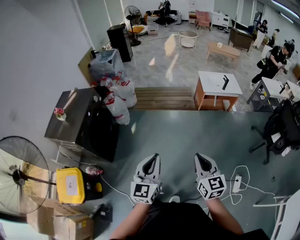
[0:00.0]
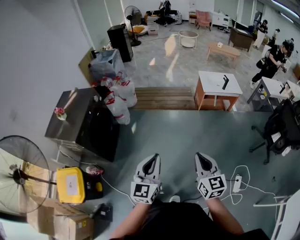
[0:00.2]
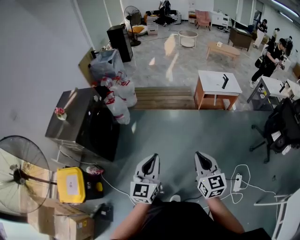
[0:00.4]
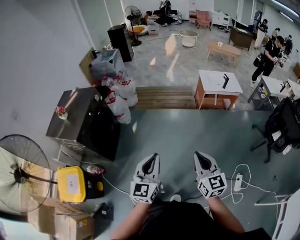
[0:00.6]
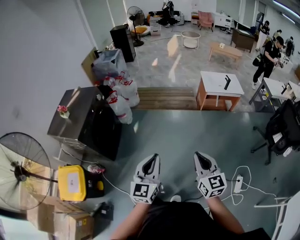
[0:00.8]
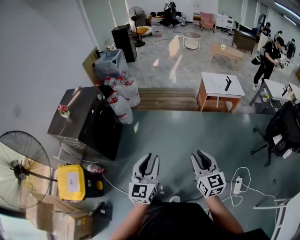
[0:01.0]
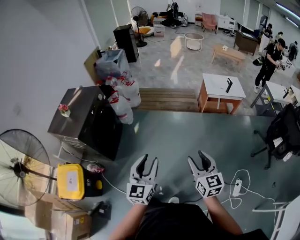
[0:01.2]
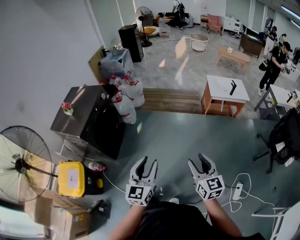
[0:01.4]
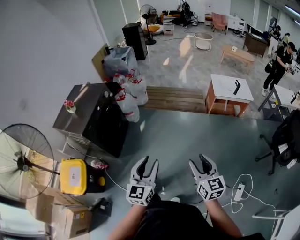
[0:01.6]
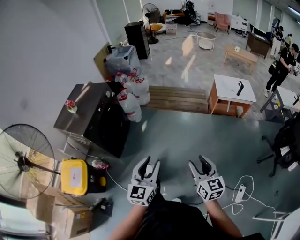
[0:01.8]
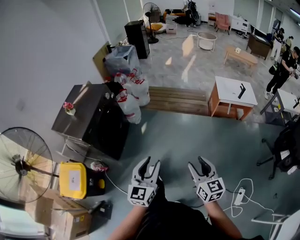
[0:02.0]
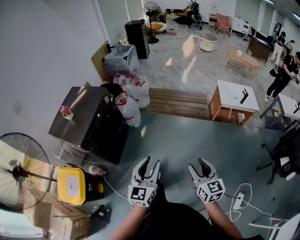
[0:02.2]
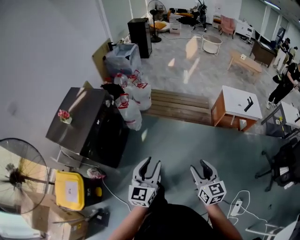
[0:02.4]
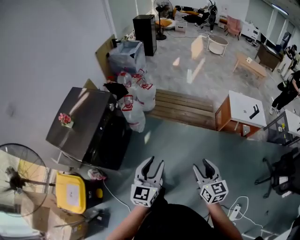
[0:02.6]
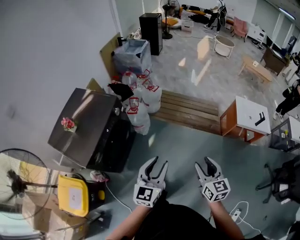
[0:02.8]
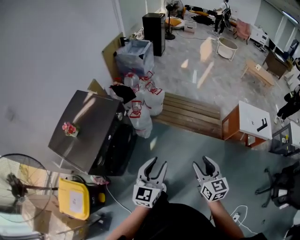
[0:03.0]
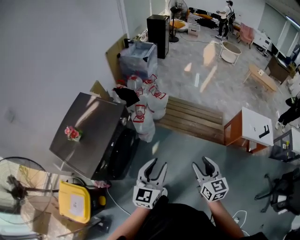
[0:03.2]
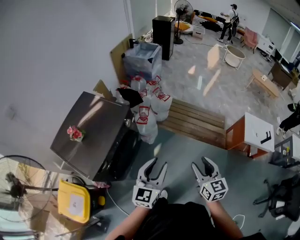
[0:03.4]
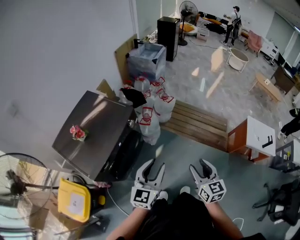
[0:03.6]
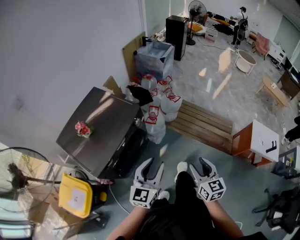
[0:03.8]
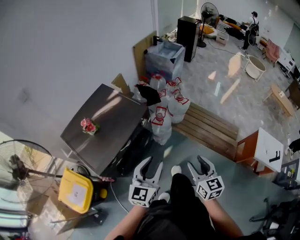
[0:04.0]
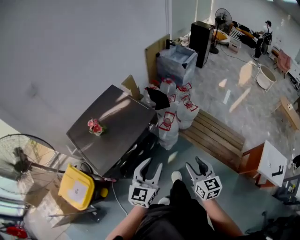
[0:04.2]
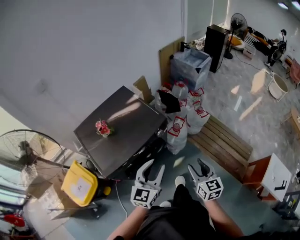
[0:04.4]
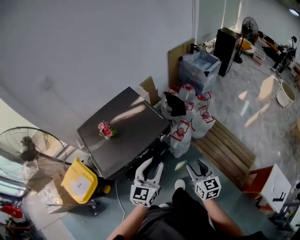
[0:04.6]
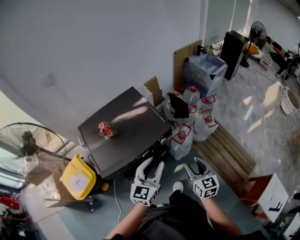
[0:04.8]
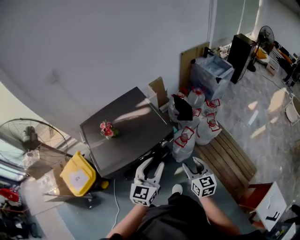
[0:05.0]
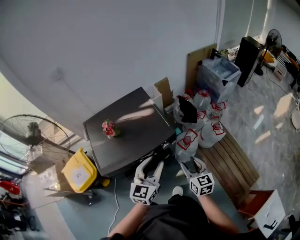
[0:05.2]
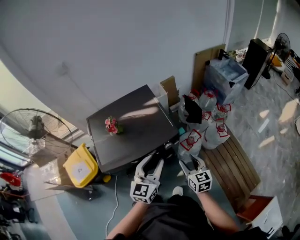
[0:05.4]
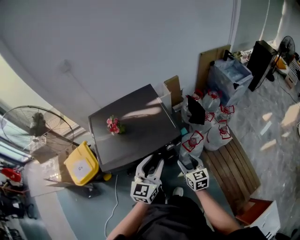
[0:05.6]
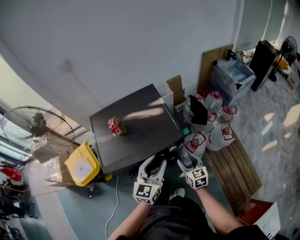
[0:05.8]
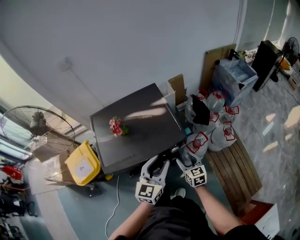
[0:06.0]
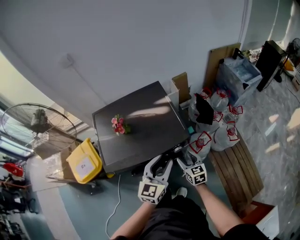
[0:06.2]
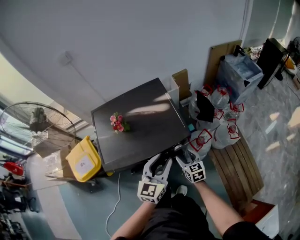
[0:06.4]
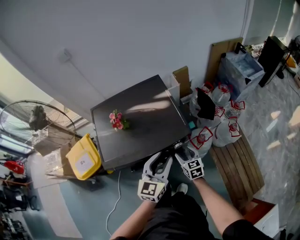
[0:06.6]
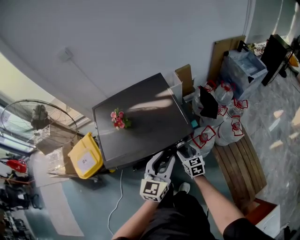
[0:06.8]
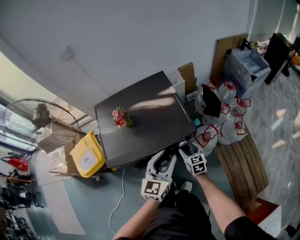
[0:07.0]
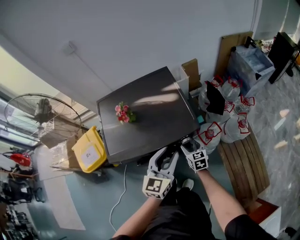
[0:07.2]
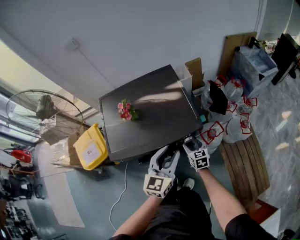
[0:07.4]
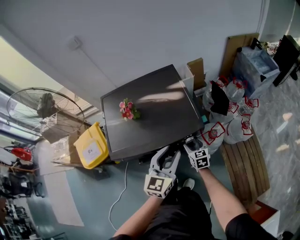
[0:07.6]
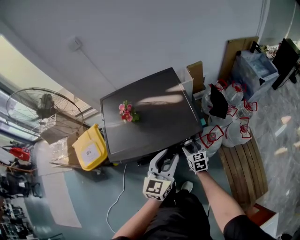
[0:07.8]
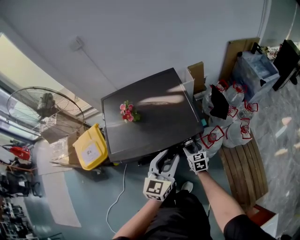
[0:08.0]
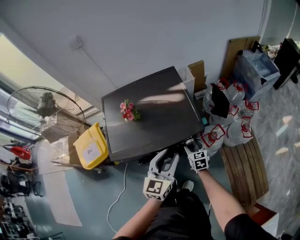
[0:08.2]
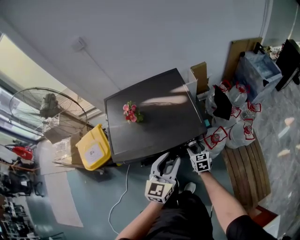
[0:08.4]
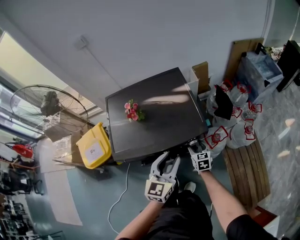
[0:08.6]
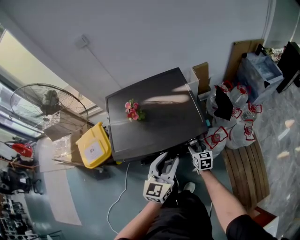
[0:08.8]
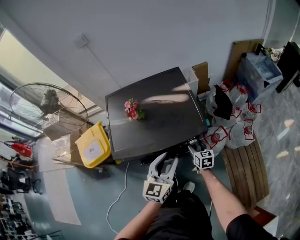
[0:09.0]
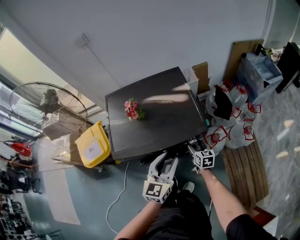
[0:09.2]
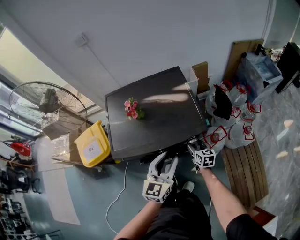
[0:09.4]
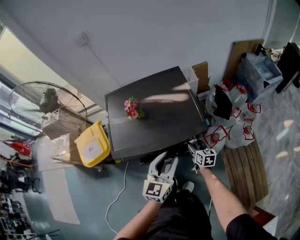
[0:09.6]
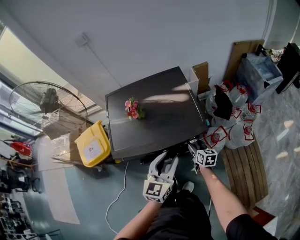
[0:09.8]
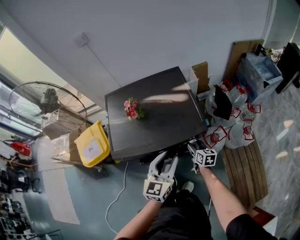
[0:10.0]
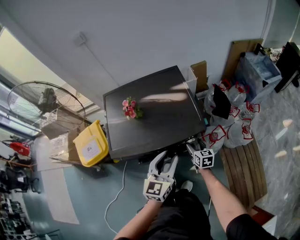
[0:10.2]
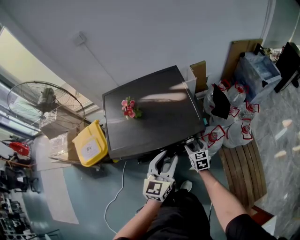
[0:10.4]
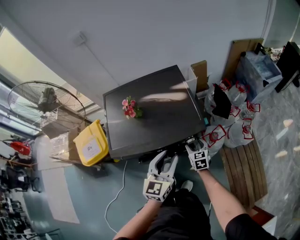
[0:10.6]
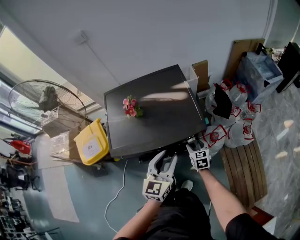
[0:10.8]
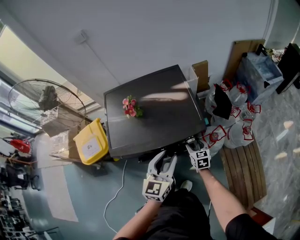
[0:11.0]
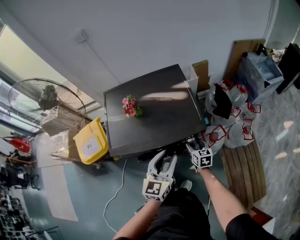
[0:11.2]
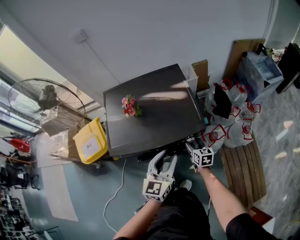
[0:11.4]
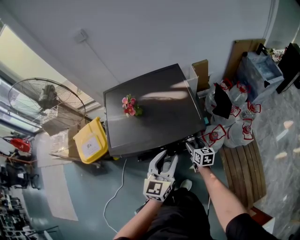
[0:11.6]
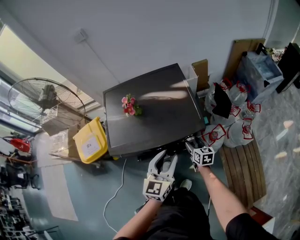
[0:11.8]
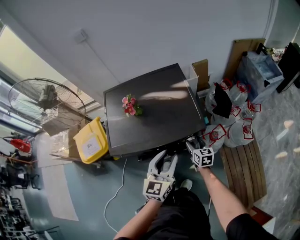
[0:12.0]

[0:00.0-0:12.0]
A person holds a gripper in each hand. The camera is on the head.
0:00.0 to 0:01.6: The right gripper opens up; the left gripper opens.
0:01.6 to 0:03.0: Both grippers are carried forward and to the left, approximately 50 cm.
0:03.0 to 0:04.4: The right gripper changes place by some 30 cm, and swivels roughly 30 degrees. The left gripper changes place by about 25 cm, and changes its angle by some 30 degrees.
0:04.4 to 0:06.0: The right gripper changes place by some 30 cm, and rotates roughly 30 degrees, while the left gripper moves roughly 15 cm, and rotates roughly 20 degrees.
0:06.0 to 0:07.6: The right gripper is displaced downward and forward by some 15 cm.
0:07.6 to 0:09.0: The grippers move only a little.
0:09.0 to 0:12.0: The grippers make only small movements.

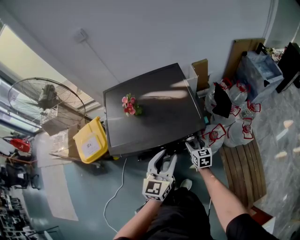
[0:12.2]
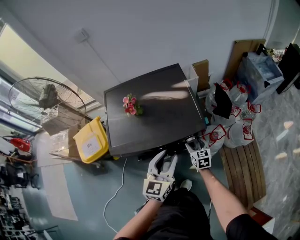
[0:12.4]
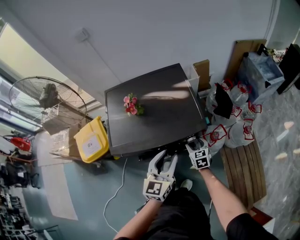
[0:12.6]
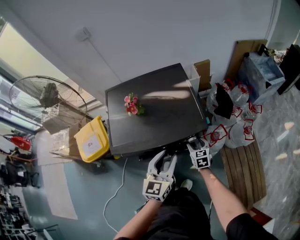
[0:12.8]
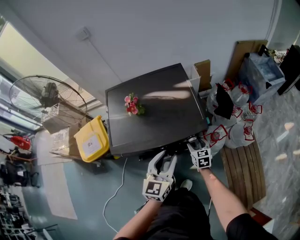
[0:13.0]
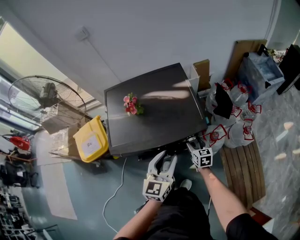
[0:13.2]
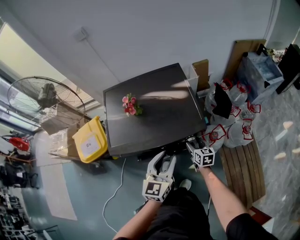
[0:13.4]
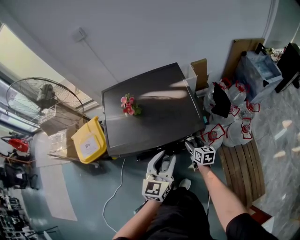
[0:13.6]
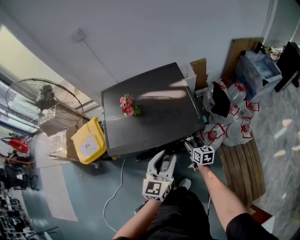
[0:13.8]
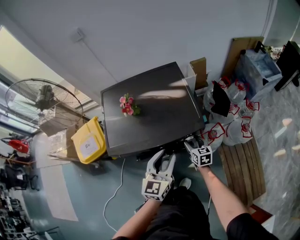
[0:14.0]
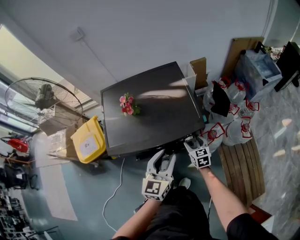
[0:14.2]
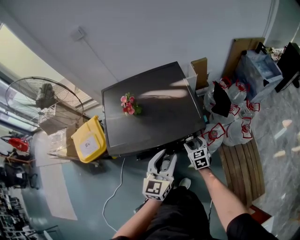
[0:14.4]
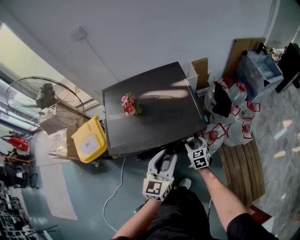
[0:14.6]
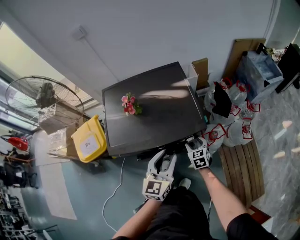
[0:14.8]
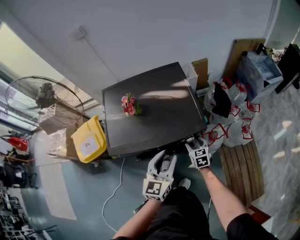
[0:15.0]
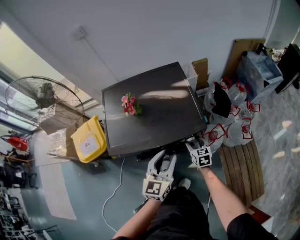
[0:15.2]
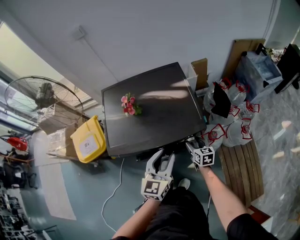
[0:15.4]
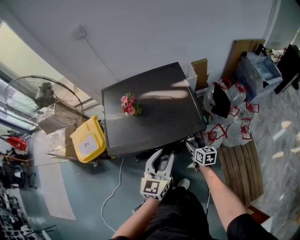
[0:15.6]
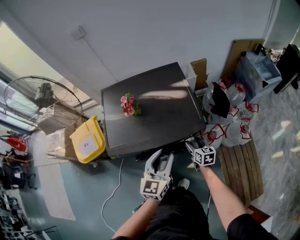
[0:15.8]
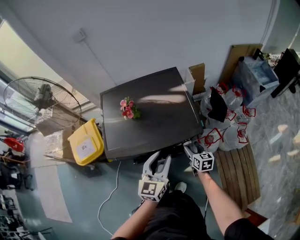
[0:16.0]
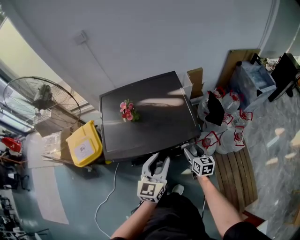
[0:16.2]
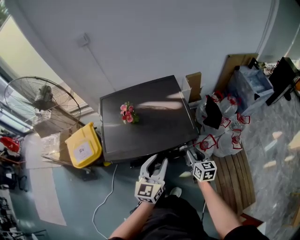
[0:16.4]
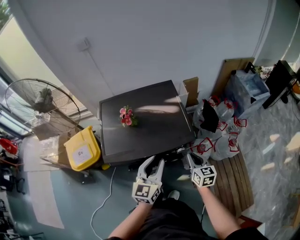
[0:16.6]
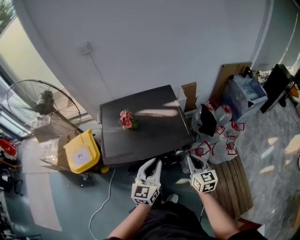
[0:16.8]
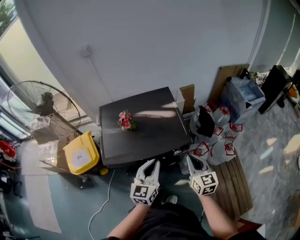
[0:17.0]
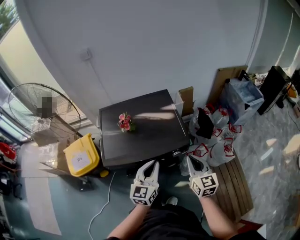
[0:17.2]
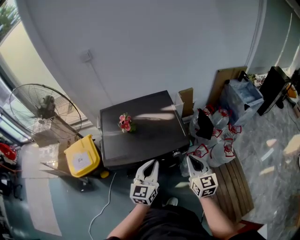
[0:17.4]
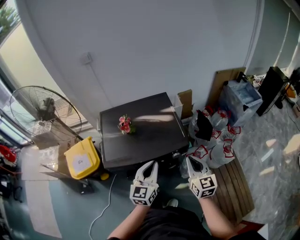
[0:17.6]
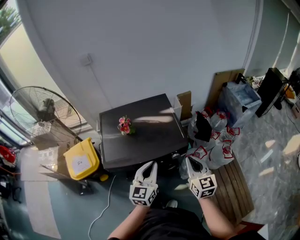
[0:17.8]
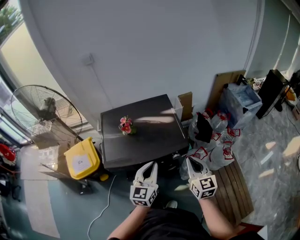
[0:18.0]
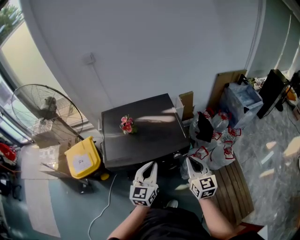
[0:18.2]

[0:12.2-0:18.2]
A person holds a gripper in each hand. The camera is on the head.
0:12.2 to 0:13.8: The grippers move only a little.
0:15.2 to 0:16.6: The right gripper travels upward by some 15 cm, and closes its fingers.
0:16.6 to 0:18.2: The left gripper closes up, while the right gripper shifts some 15 cm upward.

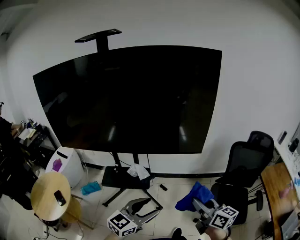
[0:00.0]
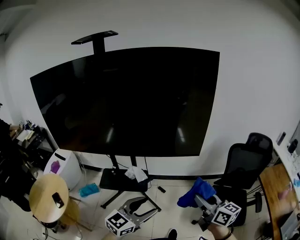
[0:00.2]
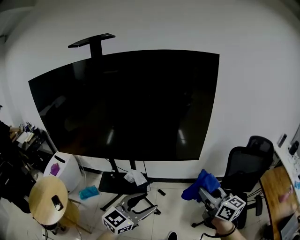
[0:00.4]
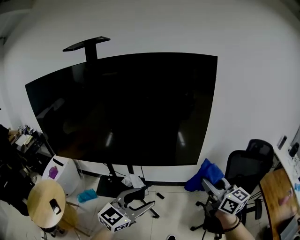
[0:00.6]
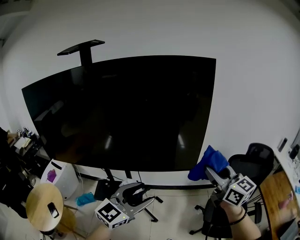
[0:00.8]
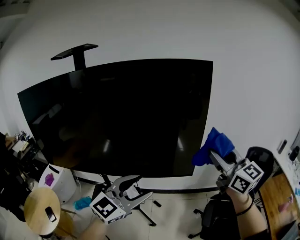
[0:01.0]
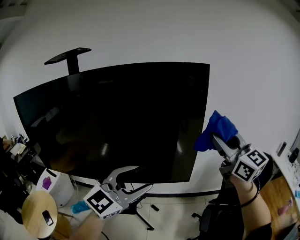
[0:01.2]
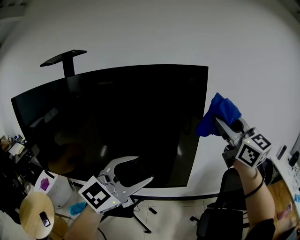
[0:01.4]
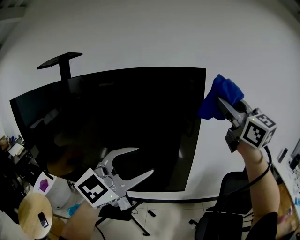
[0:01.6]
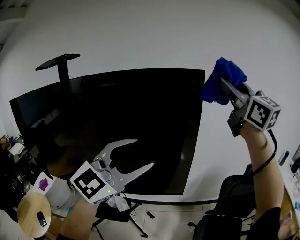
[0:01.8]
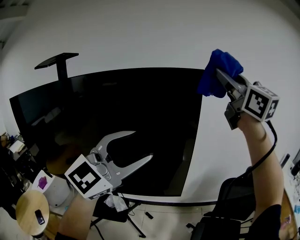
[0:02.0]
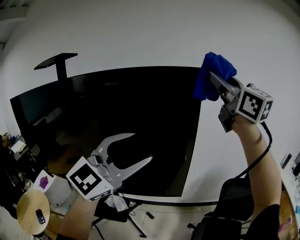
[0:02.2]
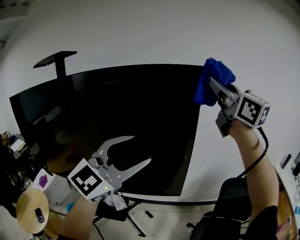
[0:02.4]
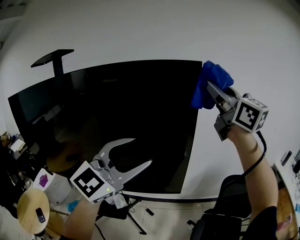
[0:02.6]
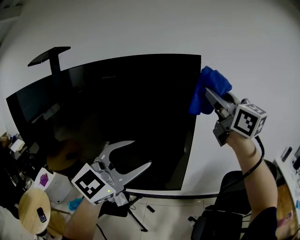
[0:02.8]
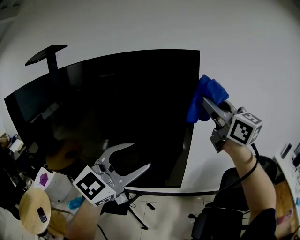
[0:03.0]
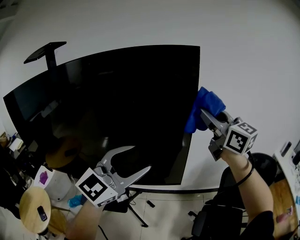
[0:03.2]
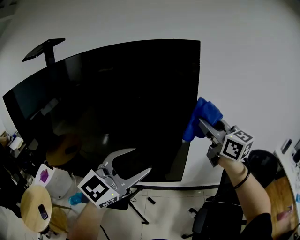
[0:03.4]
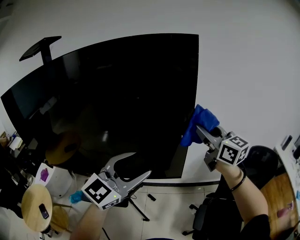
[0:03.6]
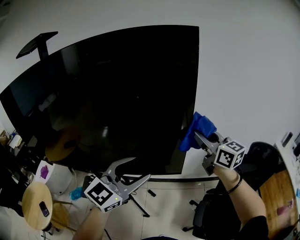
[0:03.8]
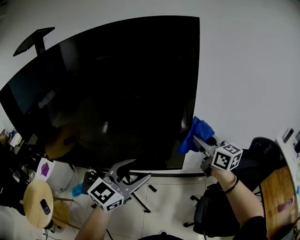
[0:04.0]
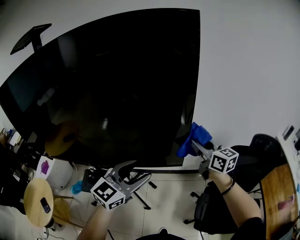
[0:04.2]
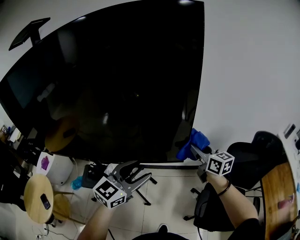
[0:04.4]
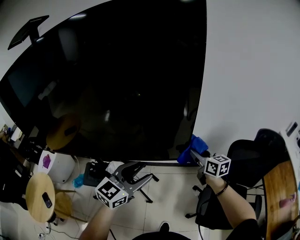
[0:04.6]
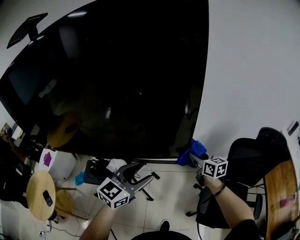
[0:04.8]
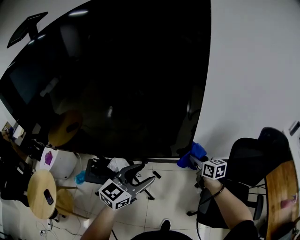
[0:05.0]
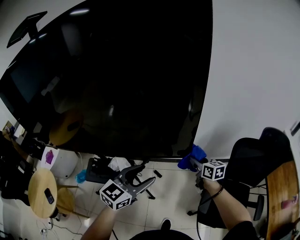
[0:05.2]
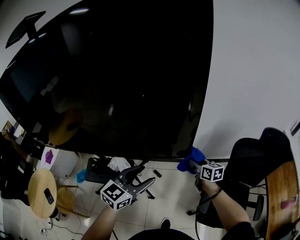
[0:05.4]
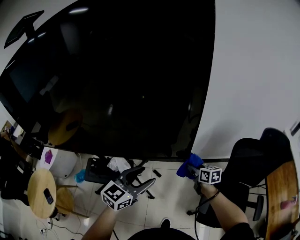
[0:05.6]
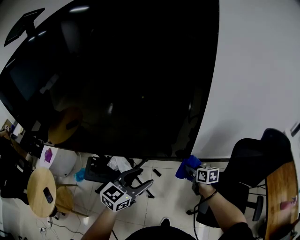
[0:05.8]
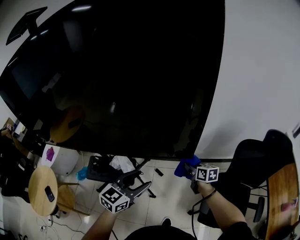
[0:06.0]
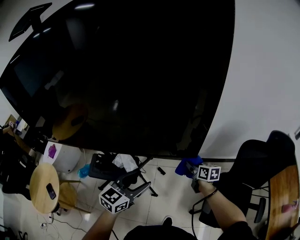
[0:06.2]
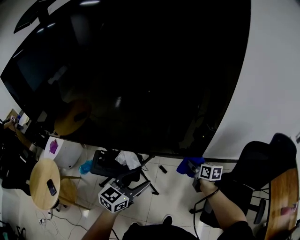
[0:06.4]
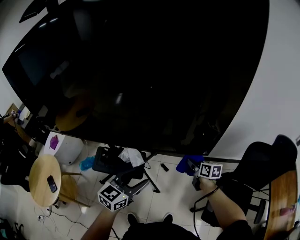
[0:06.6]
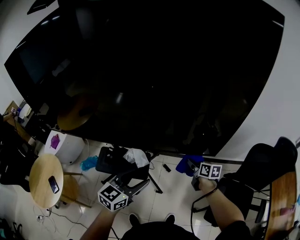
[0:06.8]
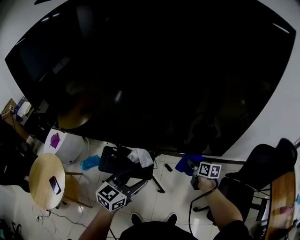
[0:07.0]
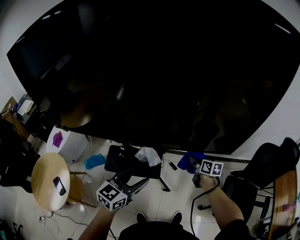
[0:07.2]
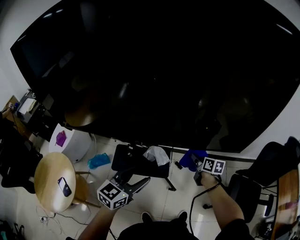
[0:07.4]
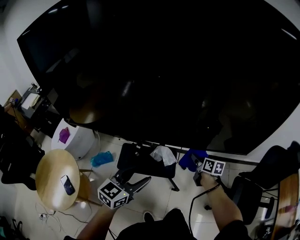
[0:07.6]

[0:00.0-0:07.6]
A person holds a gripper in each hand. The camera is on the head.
0:00.0 to 0:01.6: Both grippers travel together upward and forward, approximately 50 cm. The right gripper twists about 40 degrees counterclockwise, seen from behind. Meanwhile the left gripper rotates approximately 40 degrees.
0:01.6 to 0:03.0: The left gripper heads forward, covering approximately 5 cm, and moves about 5 cm upward and comes back, while the right gripper is displaced forward and downward by approximately 10 cm.
0:03.0 to 0:04.6: The right gripper travels downward by approximately 50 cm, and changes its angle by roughly 40 degrees, while the left gripper goes about 25 cm downward, and rotates roughly 30 degrees.
0:04.6 to 0:06.0: The left gripper goes about 10 cm downward; the right gripper travels downward by about 15 cm, and rotates approximately 20 degrees.
0:06.0 to 0:07.6: Both grippers move to the left, approximately 35 cm.
